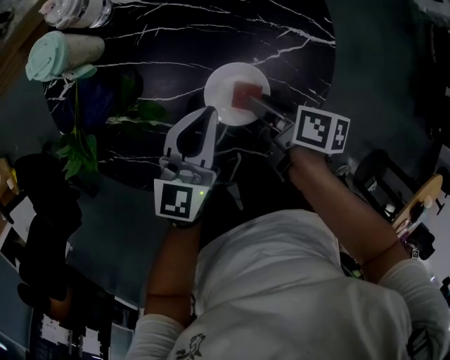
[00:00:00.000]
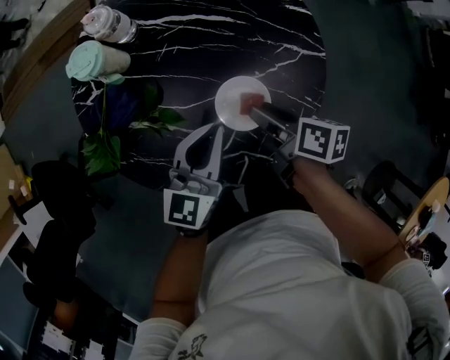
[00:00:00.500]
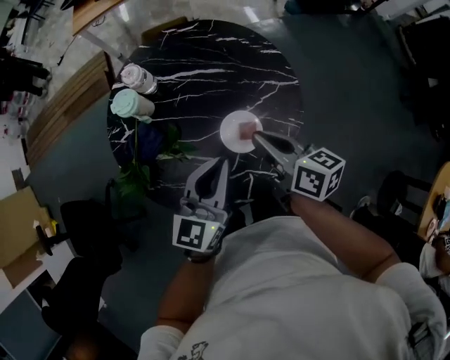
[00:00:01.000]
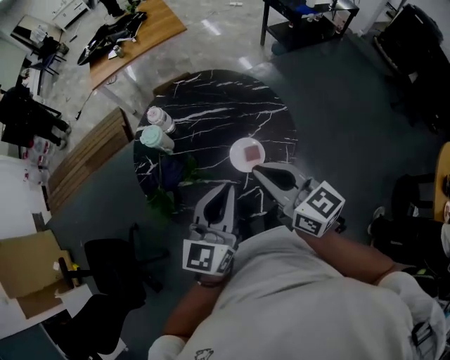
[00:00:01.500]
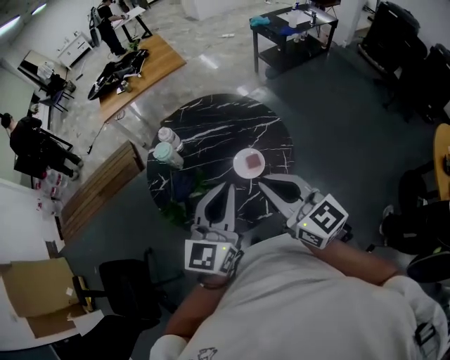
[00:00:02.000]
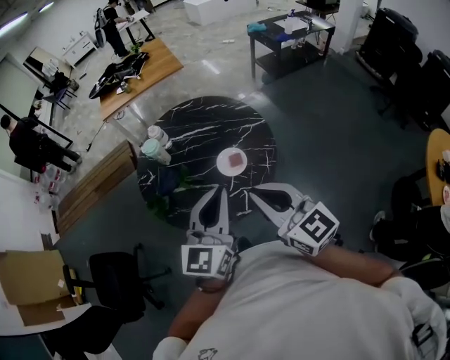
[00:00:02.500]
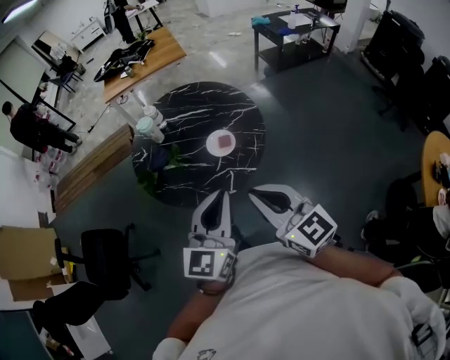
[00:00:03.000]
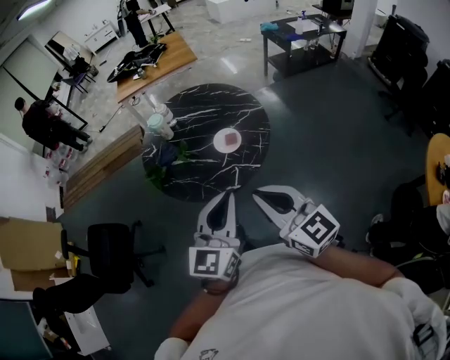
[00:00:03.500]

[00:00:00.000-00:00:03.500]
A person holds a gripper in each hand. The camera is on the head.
00:00:00.000 to 00:00:02.000: The left gripper heads upward, covering roughly 40 cm, and rotates roughly 20 degrees.
00:00:02.000 to 00:00:03.500: The left gripper moves approximately 25 cm.

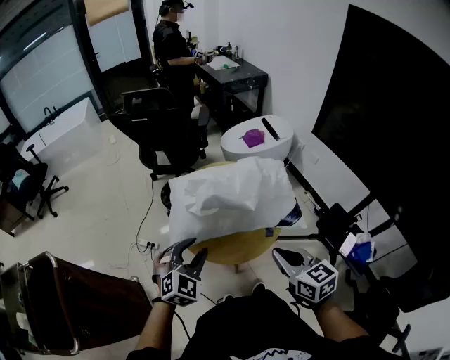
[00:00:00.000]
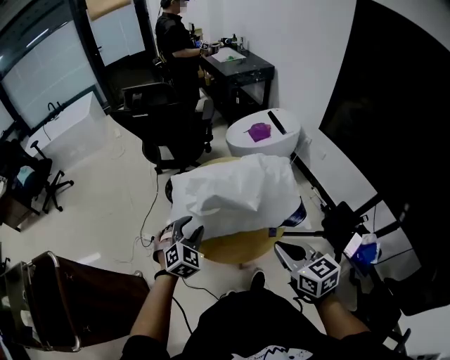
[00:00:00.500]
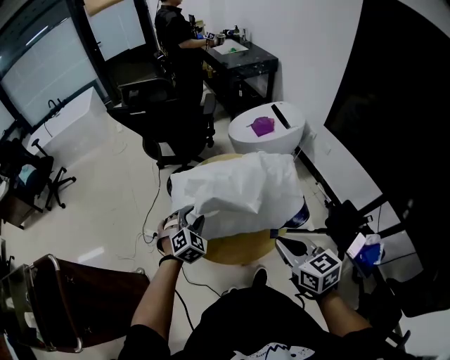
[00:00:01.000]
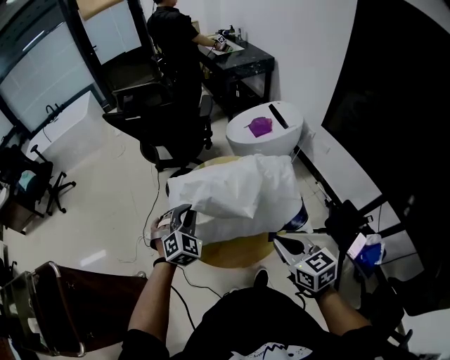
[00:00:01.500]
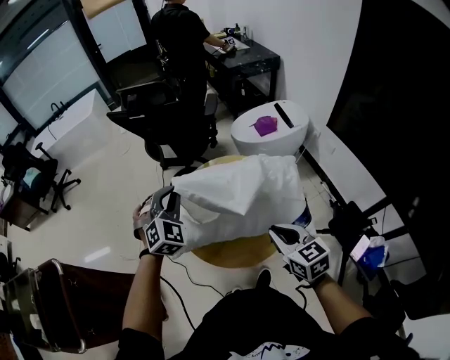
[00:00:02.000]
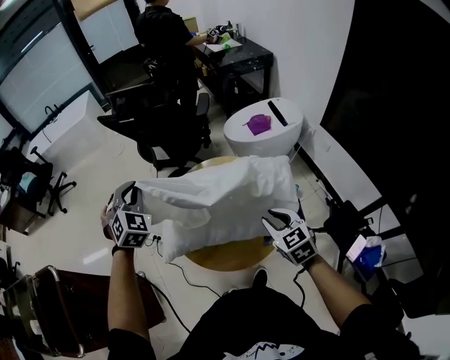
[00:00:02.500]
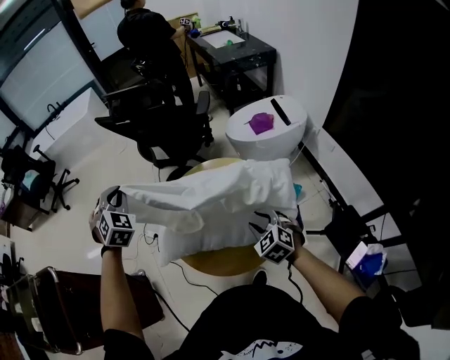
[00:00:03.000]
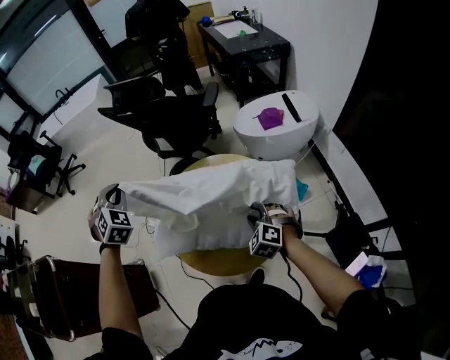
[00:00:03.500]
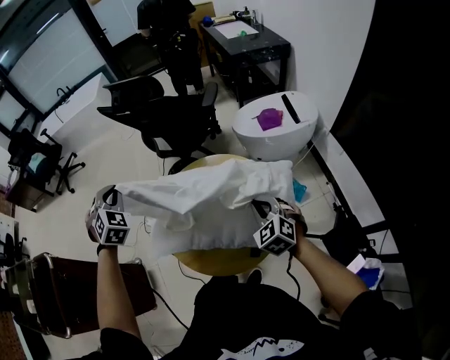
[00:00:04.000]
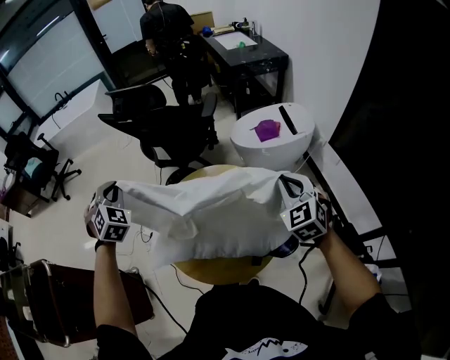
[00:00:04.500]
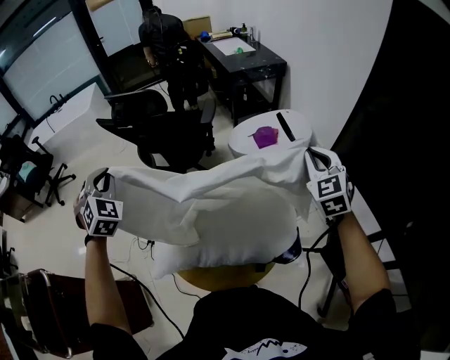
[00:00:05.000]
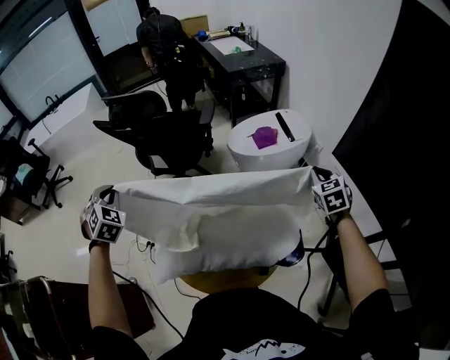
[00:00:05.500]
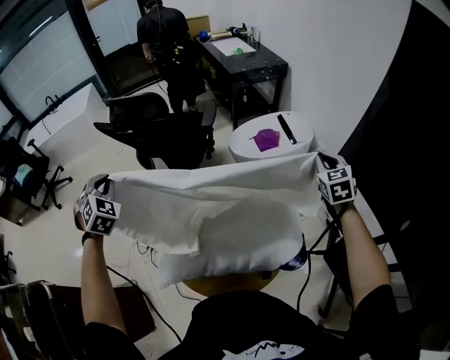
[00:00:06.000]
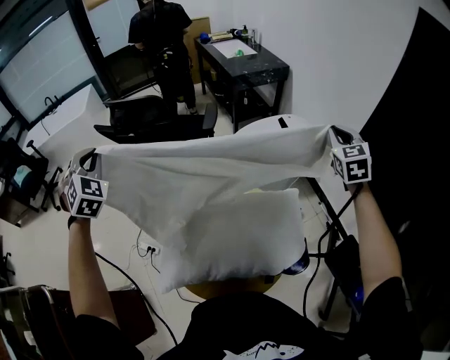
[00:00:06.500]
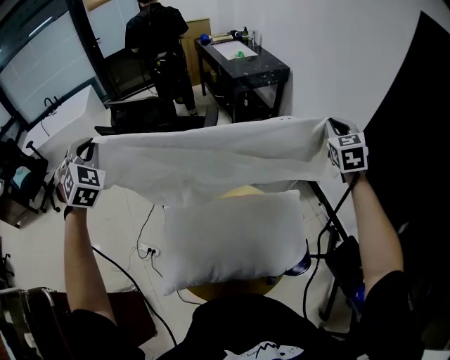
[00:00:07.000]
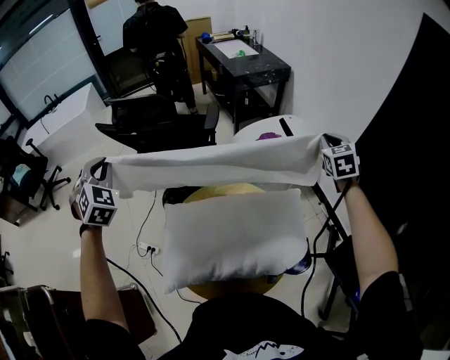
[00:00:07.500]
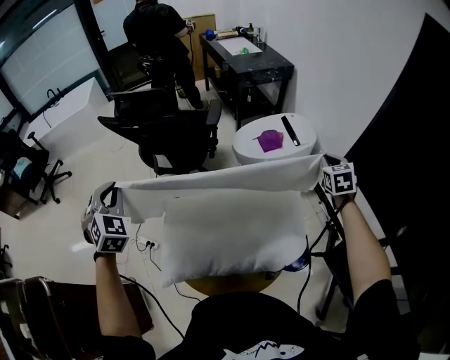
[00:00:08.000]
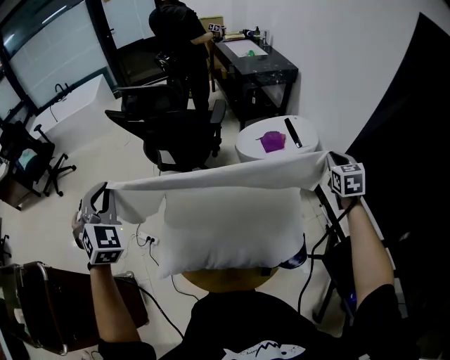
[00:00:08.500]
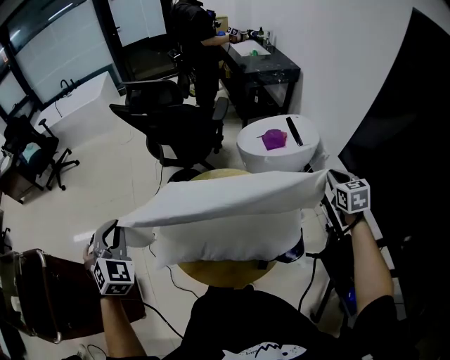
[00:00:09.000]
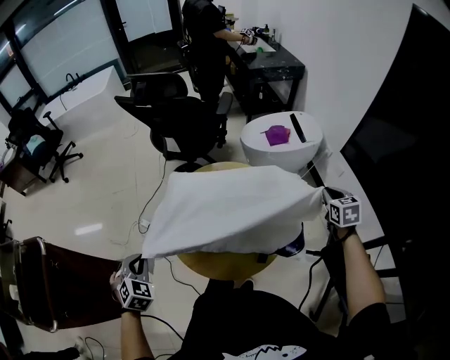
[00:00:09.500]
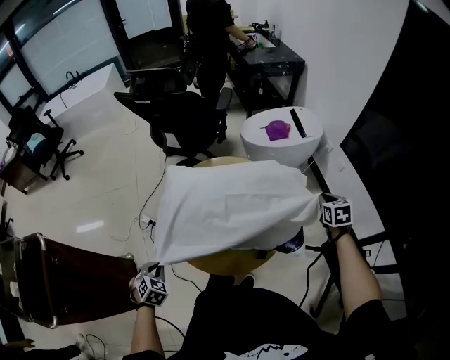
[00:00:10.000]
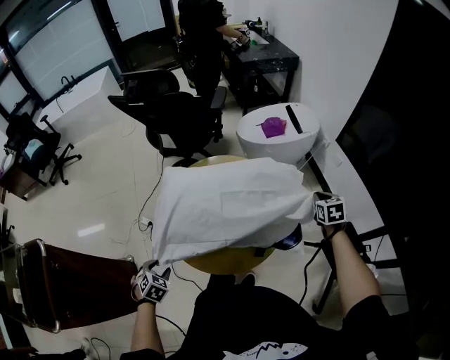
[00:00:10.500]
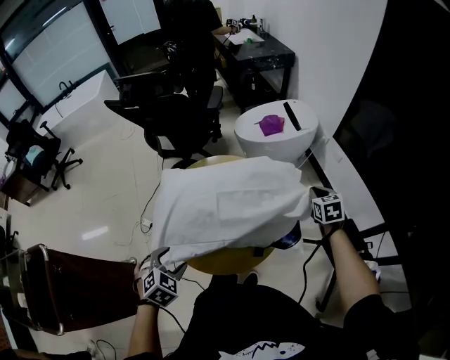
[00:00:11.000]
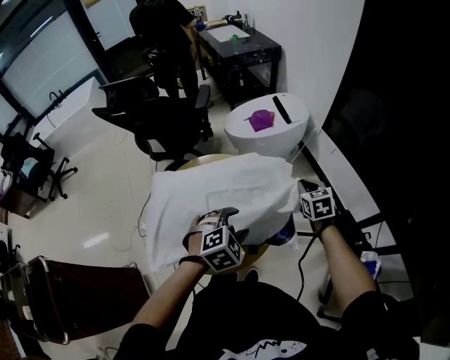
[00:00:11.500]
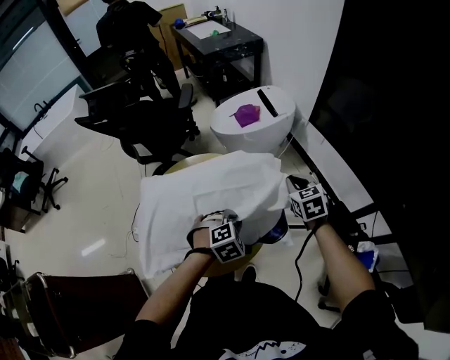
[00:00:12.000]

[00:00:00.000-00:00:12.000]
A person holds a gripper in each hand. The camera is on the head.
00:00:00.000 to 00:00:02.000: The right gripper shifts some 10 cm forward; the left gripper goes some 20 cm forward, swivels about 20 degrees, and closes its fingers.
00:00:02.000 to 00:00:04.000: The right gripper travels forward, to the right and downward by about 20 cm, swivels approximately 40 degrees, and opens, then closes once more. Meanwhile the left gripper is displaced forward and to the left by roughly 10 cm, and rotates some 30 degrees.
00:00:04.000 to 00:00:06.000: The right gripper heads to the right, forward and upward, covering roughly 30 cm, and swivels some 40 degrees. Meanwhile the left gripper travels forward by about 15 cm.
00:00:06.000 to 00:00:08.000: The right gripper travels upward and back again, approximately 10 cm each way, while the left gripper travels upward and back again, approximately 15 cm each way.
00:00:08.000 to 00:00:10.000: The left gripper moves backward and downward, some 50 cm, and points its fingers about 30 degrees further downward; the right gripper travels backward and downward by some 20 cm.
00:00:10.000 to 00:00:12.000: The left gripper travels to the right and forward by about 40 cm, twists some 40 degrees clockwise, seen from behind, and opens, then closes once more.

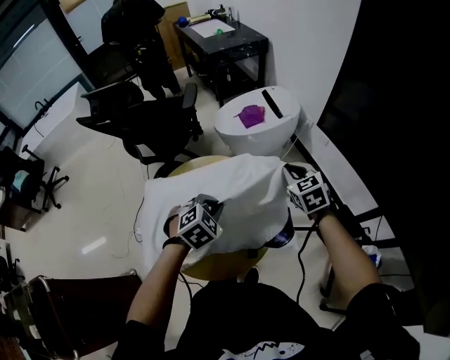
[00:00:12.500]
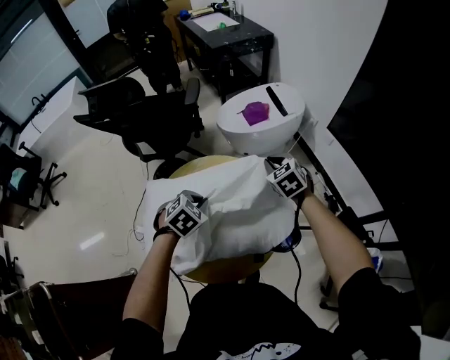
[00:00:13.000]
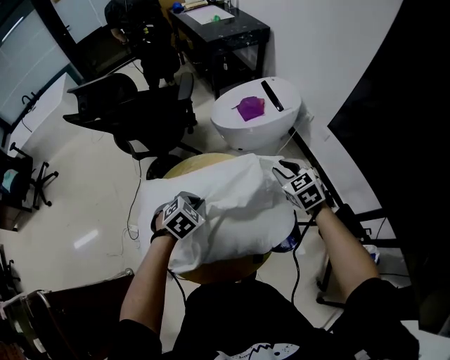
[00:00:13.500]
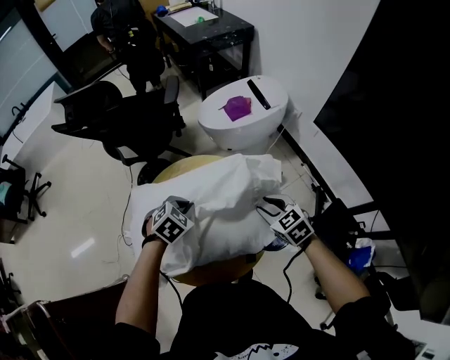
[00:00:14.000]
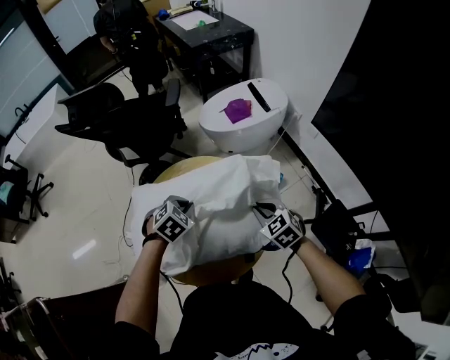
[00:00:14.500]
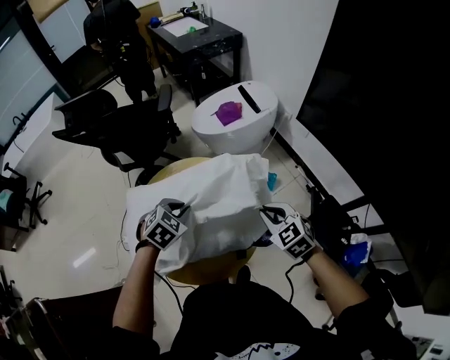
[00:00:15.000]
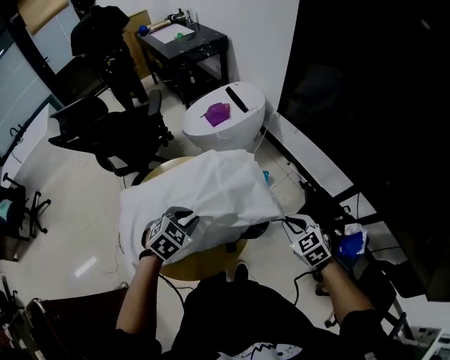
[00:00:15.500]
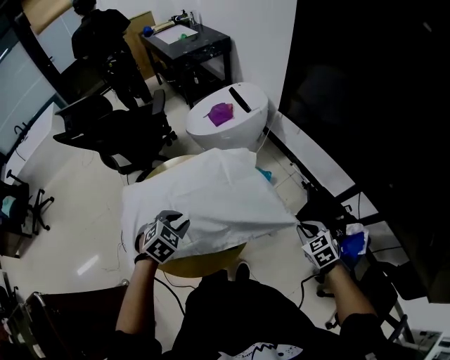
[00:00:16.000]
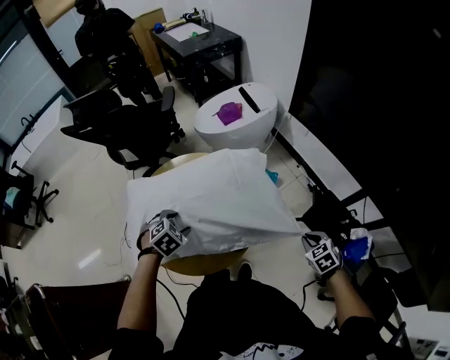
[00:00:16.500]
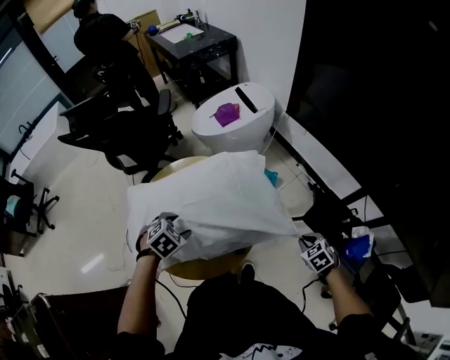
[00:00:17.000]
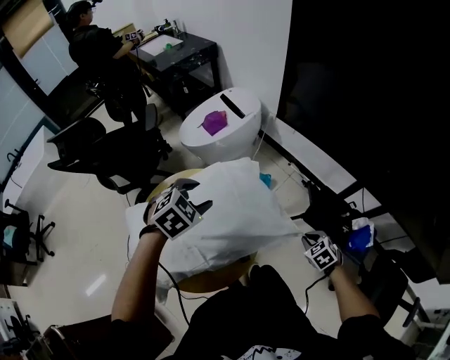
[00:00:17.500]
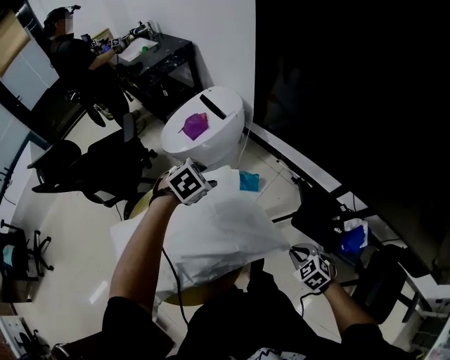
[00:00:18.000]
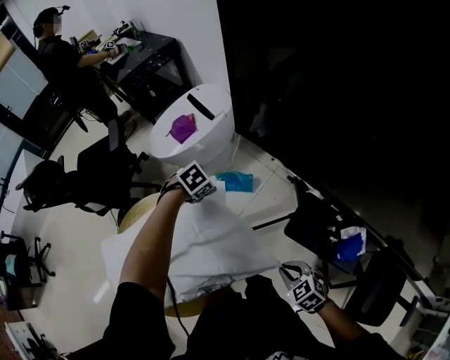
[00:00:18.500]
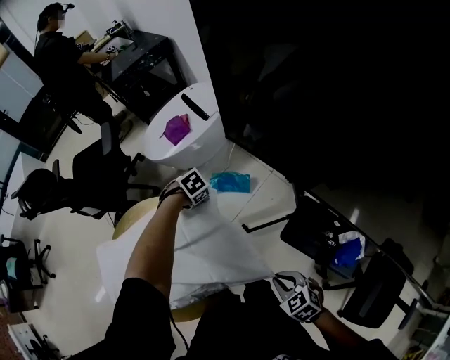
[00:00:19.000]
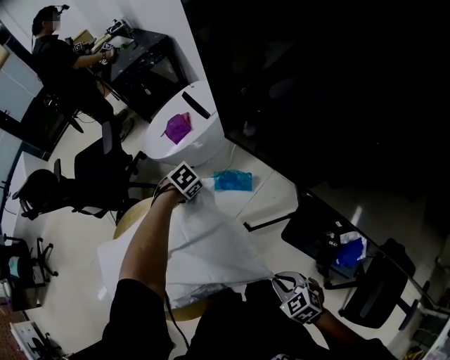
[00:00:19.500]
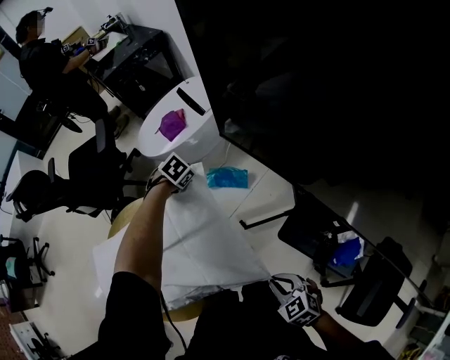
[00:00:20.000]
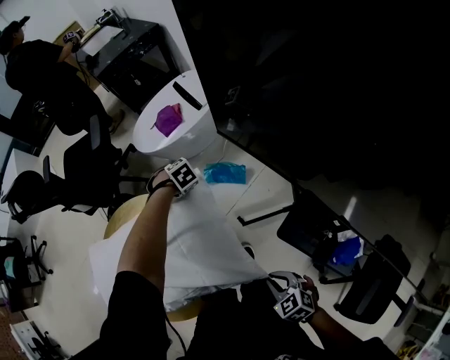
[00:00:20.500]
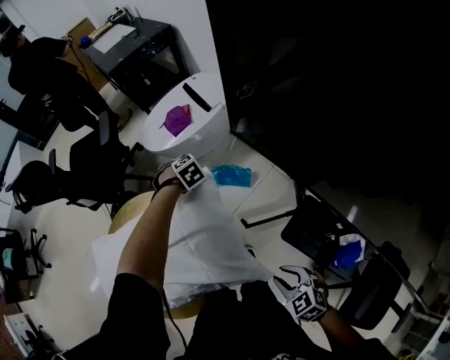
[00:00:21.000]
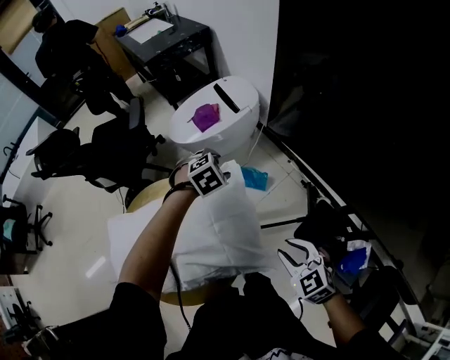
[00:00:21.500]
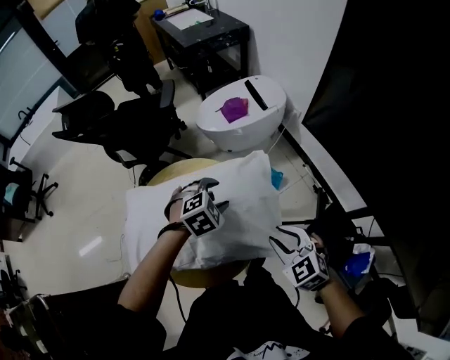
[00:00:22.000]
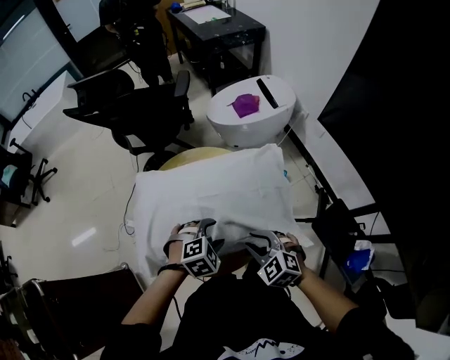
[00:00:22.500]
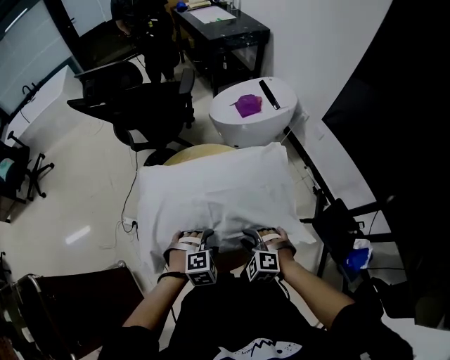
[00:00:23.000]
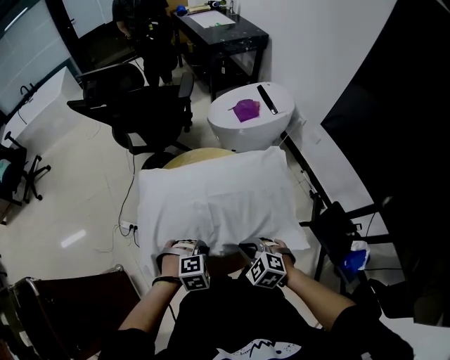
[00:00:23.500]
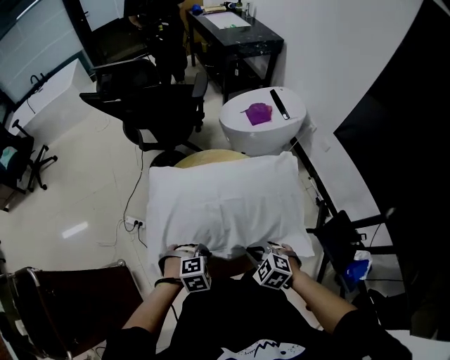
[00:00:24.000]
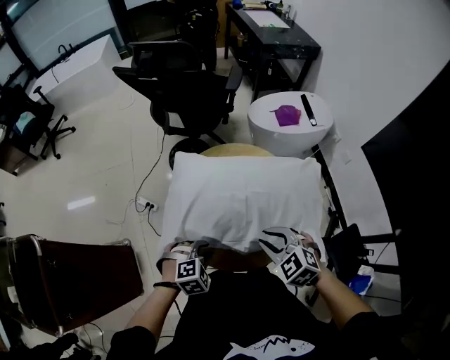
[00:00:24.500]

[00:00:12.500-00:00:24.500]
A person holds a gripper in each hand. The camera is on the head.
00:00:12.500 to 00:00:14.500: The right gripper goes approximately 15 cm downward, backward and to the left, and opens and closes again. The left gripper goes some 10 cm to the left and downward.
00:00:14.500 to 00:00:16.500: The left gripper travels backward by roughly 10 cm, and opens. Meanwhile the right gripper heads to the right and backward, covering about 30 cm, and rotates about 20 degrees.
00:00:16.500 to 00:00:18.500: The left gripper is displaced forward and to the right by roughly 40 cm, and swivels roughly 20 degrees.
00:00:18.500 to 00:00:20.500: The left gripper is displaced downward by about 10 cm, and closes its fingers.
00:00:20.500 to 00:00:22.500: The left gripper changes place by about 40 cm, swivels about 20 degrees, and opens up. The right gripper moves some 25 cm, changes its angle by roughly 40 degrees, and opens.
00:00:22.500 to 00:00:24.500: The right gripper goes about 10 cm to the left, and closes, then reopens, while the left gripper is displaced to the left and backward by approximately 15 cm, and closes its fingers.
